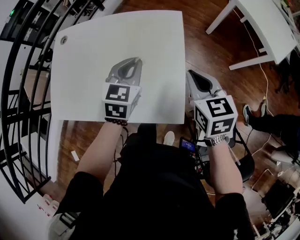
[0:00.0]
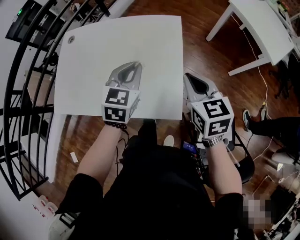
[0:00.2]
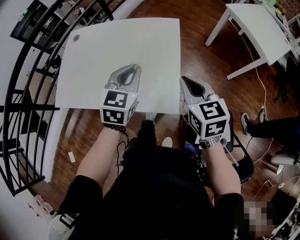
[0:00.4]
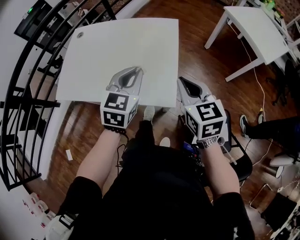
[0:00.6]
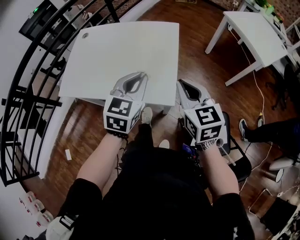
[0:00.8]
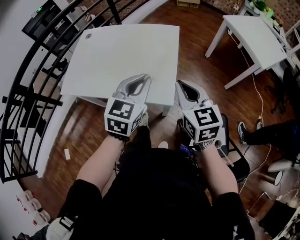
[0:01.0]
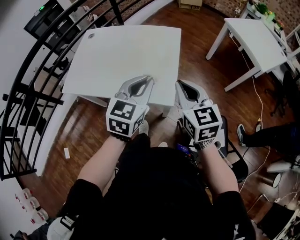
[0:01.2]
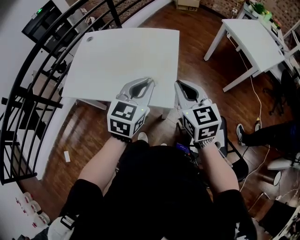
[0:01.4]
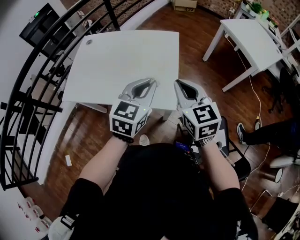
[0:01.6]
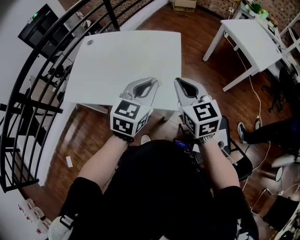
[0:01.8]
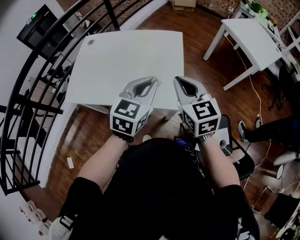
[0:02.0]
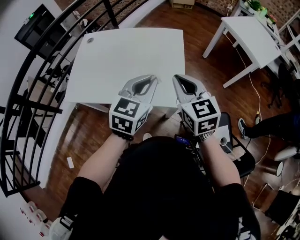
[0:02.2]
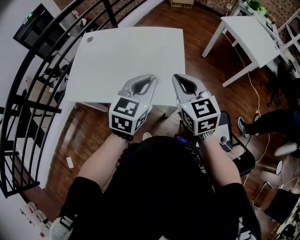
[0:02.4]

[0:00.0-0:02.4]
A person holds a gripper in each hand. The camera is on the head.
0:00.0 to 0:01.2: Both grippers travel together backward and upward, some 25 cm.
0:01.2 to 0:02.4: The two grippers go roughly 10 cm to the left.

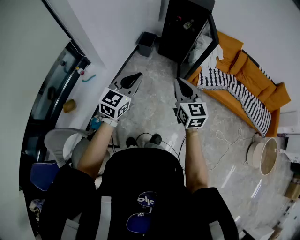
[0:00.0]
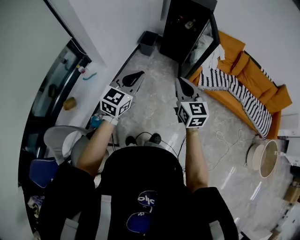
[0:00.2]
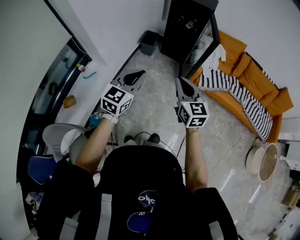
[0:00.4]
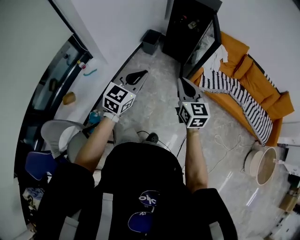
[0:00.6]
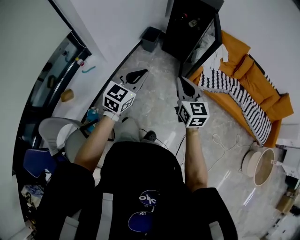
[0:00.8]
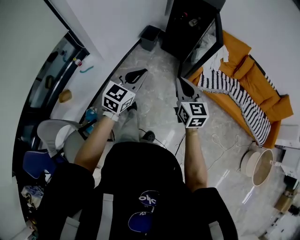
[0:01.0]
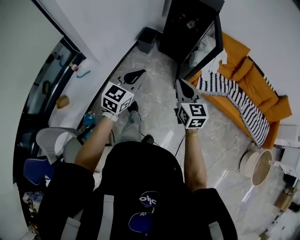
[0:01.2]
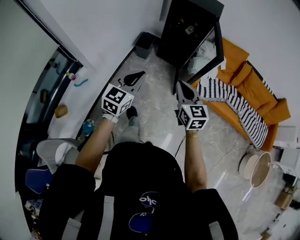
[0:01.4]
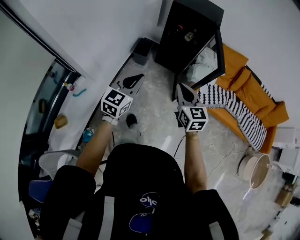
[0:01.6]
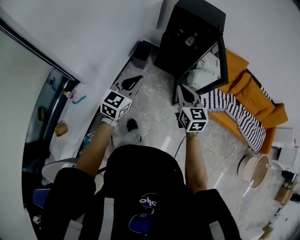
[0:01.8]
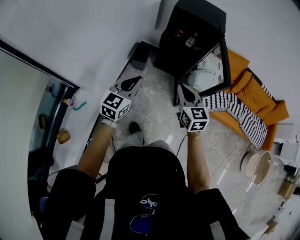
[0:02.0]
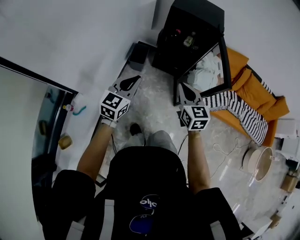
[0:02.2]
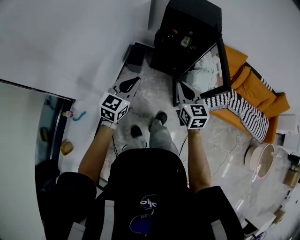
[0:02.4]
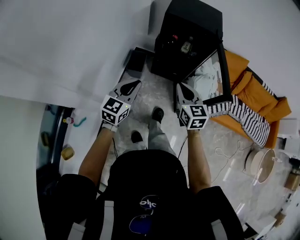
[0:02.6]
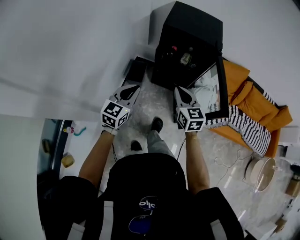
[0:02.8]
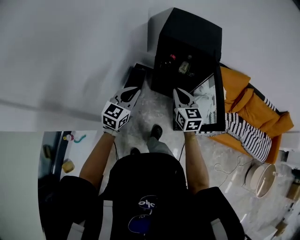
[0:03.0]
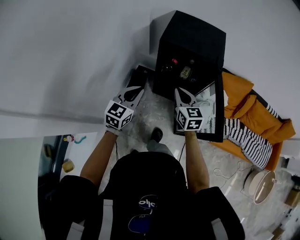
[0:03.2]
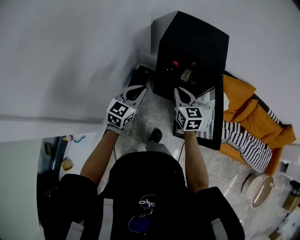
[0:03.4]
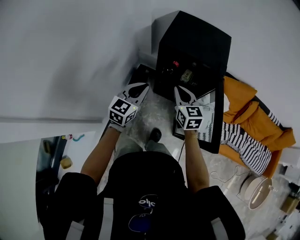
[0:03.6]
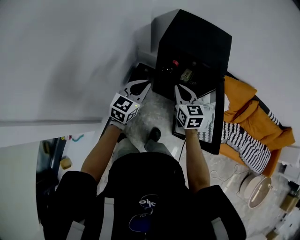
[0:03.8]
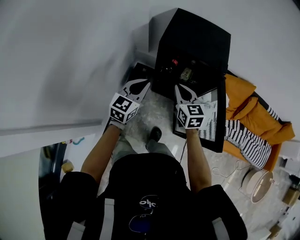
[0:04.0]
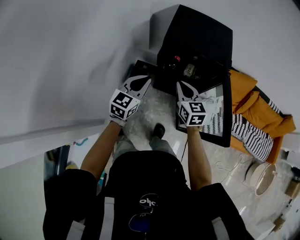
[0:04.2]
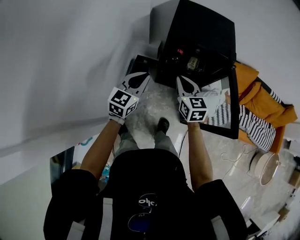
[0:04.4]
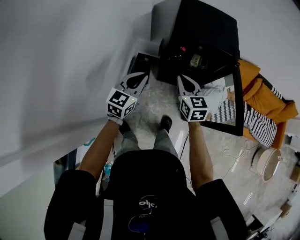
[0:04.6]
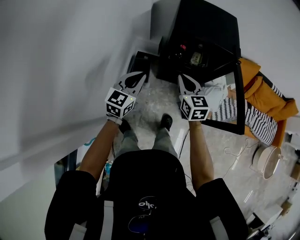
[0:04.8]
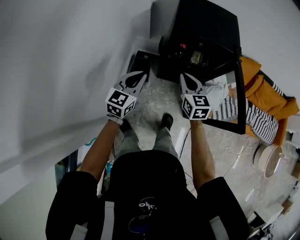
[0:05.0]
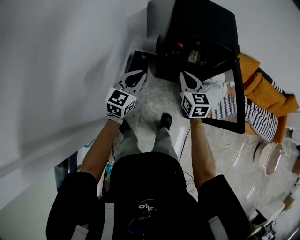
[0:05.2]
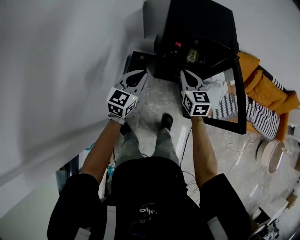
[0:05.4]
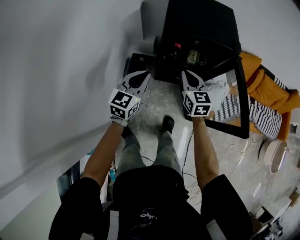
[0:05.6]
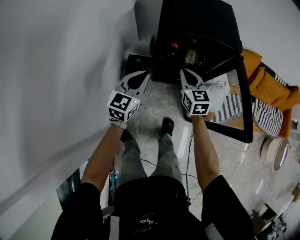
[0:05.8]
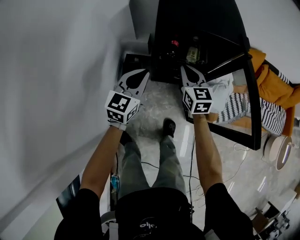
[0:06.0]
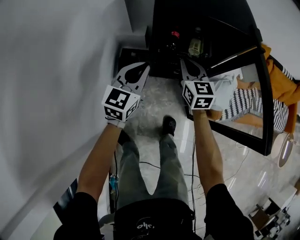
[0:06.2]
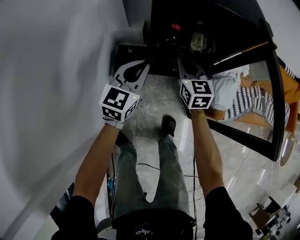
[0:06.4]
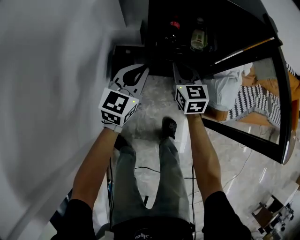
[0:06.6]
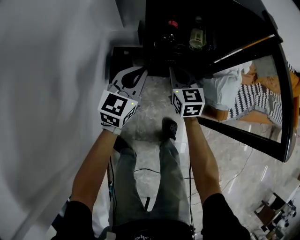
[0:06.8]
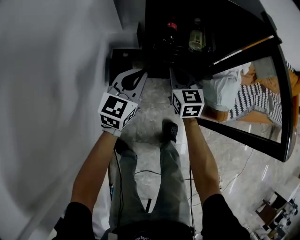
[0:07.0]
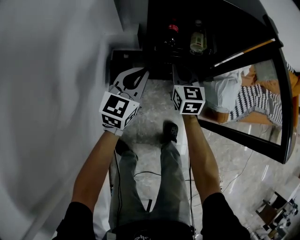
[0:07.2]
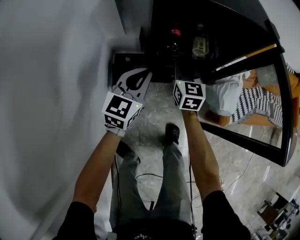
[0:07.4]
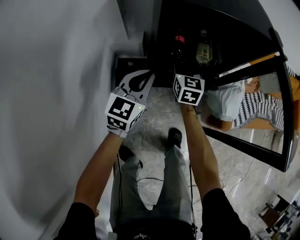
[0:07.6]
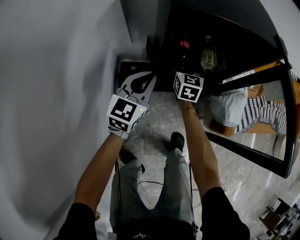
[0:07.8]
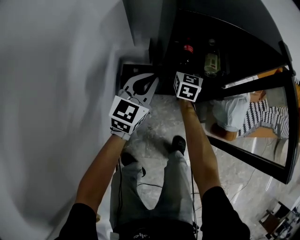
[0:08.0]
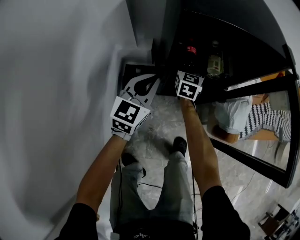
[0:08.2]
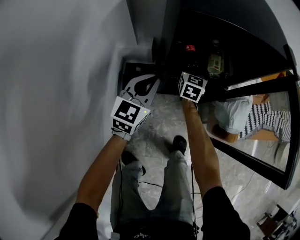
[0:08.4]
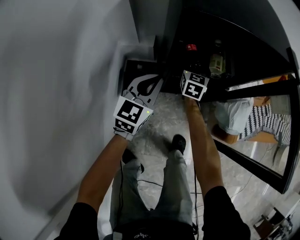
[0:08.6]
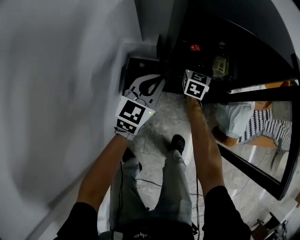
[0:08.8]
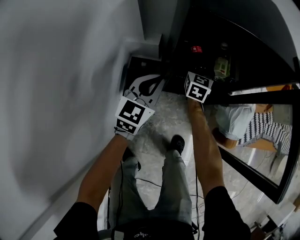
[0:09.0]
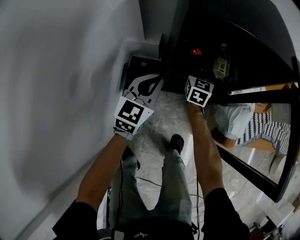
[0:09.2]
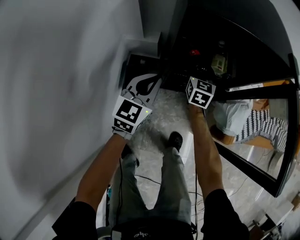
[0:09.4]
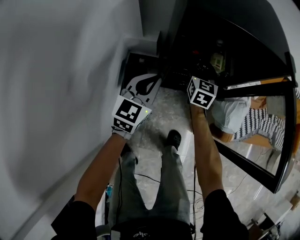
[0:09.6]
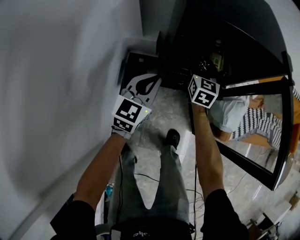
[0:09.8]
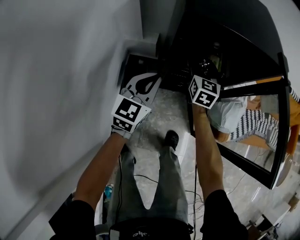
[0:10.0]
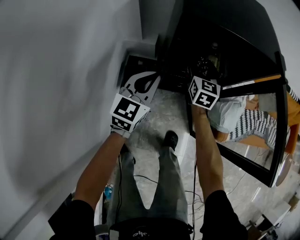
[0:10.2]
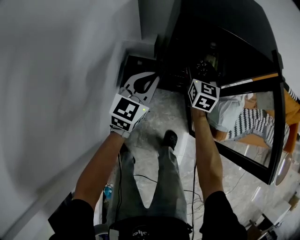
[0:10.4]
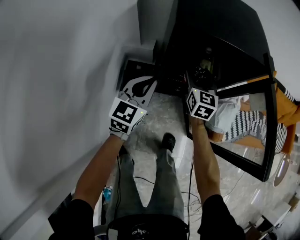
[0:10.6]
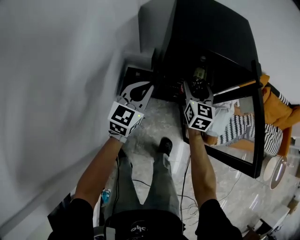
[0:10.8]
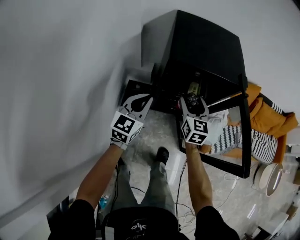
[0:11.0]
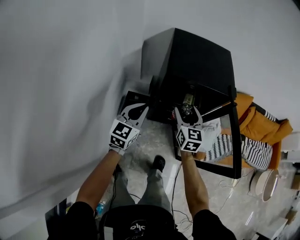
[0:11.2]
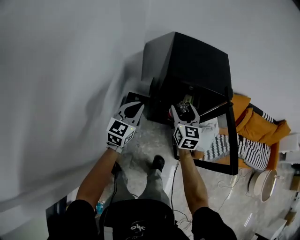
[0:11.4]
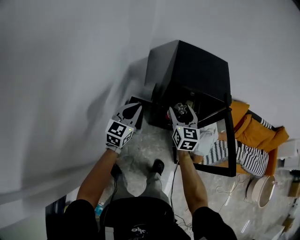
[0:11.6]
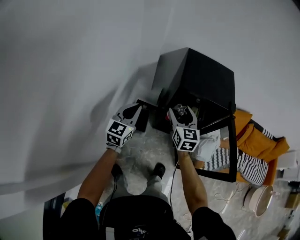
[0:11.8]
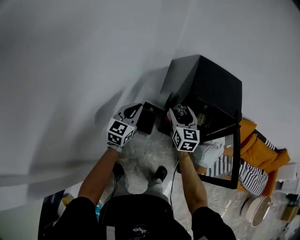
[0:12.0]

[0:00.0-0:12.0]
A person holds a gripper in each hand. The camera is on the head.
0:00.0 to 0:01.6: Both grippers move forward, approximately 25 cm.
0:01.6 to 0:03.0: The two grippers go about 35 cm forward.
0:03.0 to 0:04.4: The left gripper heads forward, covering about 15 cm, while the right gripper shifts some 15 cm forward and to the left.
0:04.4 to 0:06.0: Both grippers travel together downward and forward, roughly 15 cm.
0:06.0 to 0:07.6: The two grippers go about 20 cm downward and forward. The right gripper opens up.
0:07.6 to 0:09.0: The right gripper shifts approximately 10 cm forward and downward, and opens up.
0:09.0 to 0:10.4: The left gripper travels upward by approximately 5 cm. Meanwhile the right gripper goes approximately 15 cm upward and backward.
0:10.4 to 0:12.0: Both grippers travel together upward, to the left and backward, some 35 cm. The right gripper rotates some 20 degrees.

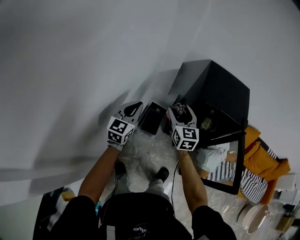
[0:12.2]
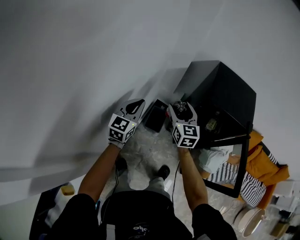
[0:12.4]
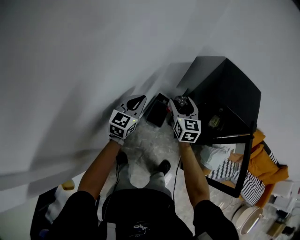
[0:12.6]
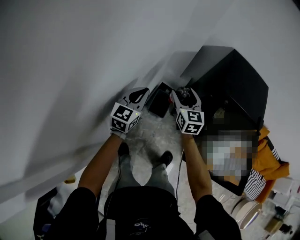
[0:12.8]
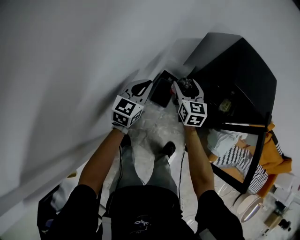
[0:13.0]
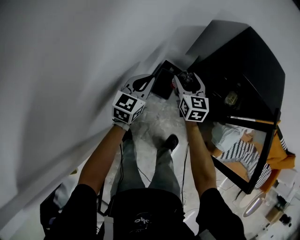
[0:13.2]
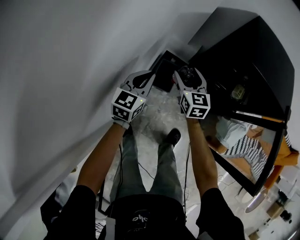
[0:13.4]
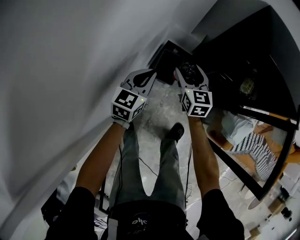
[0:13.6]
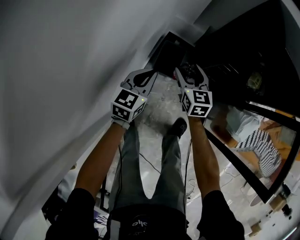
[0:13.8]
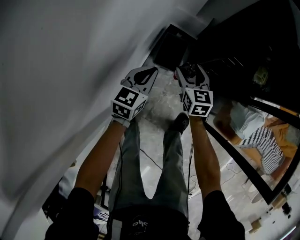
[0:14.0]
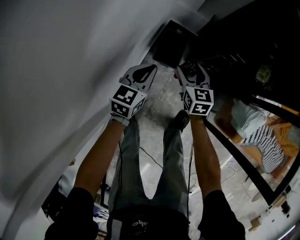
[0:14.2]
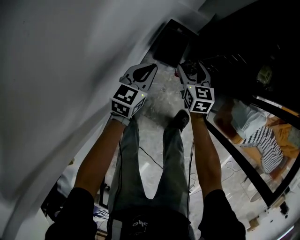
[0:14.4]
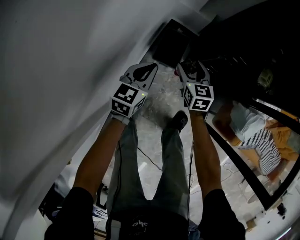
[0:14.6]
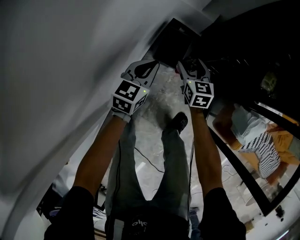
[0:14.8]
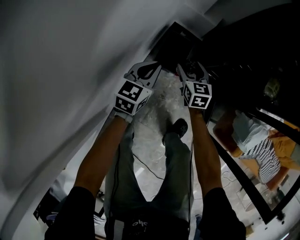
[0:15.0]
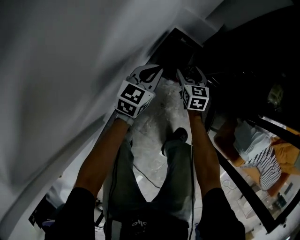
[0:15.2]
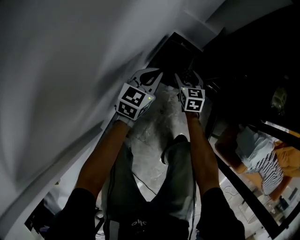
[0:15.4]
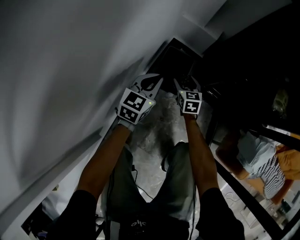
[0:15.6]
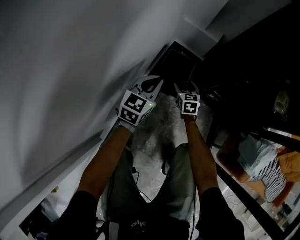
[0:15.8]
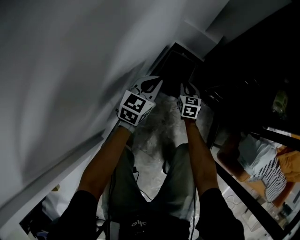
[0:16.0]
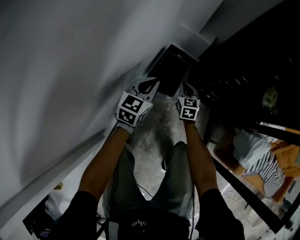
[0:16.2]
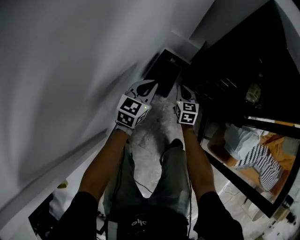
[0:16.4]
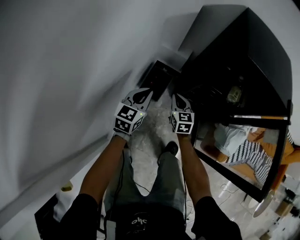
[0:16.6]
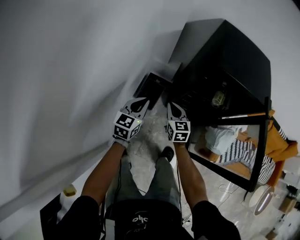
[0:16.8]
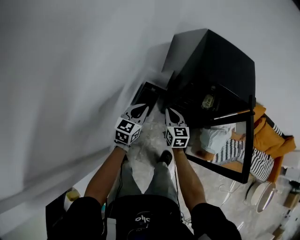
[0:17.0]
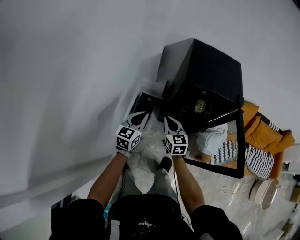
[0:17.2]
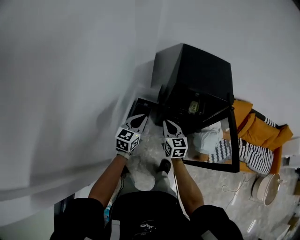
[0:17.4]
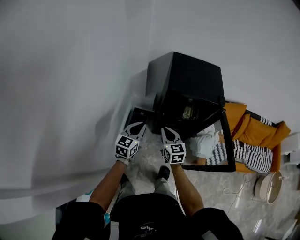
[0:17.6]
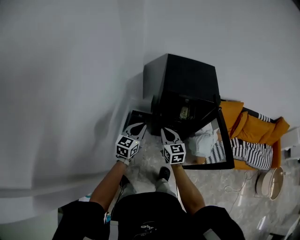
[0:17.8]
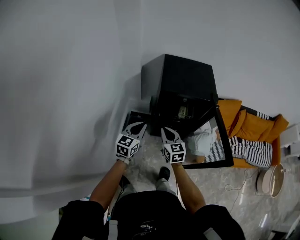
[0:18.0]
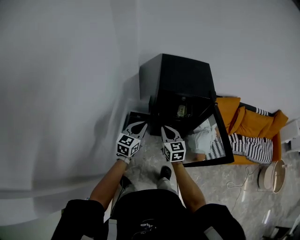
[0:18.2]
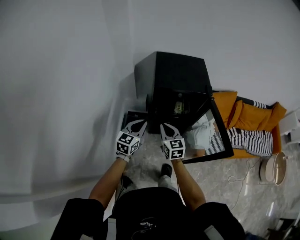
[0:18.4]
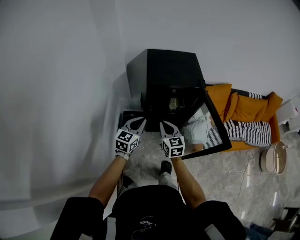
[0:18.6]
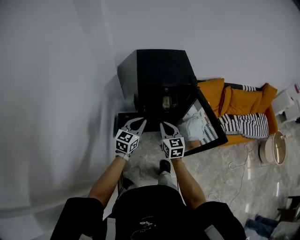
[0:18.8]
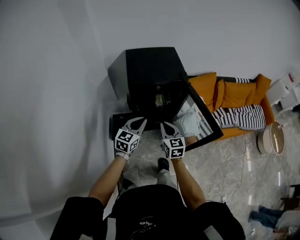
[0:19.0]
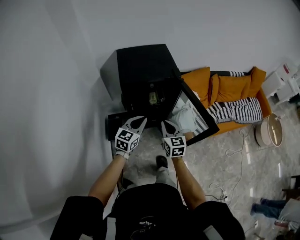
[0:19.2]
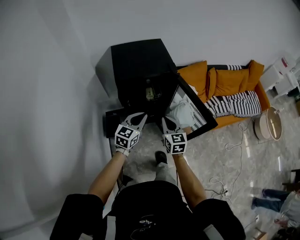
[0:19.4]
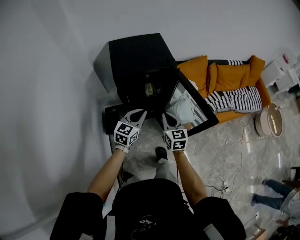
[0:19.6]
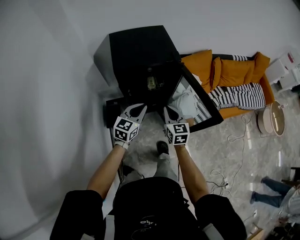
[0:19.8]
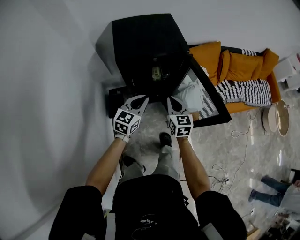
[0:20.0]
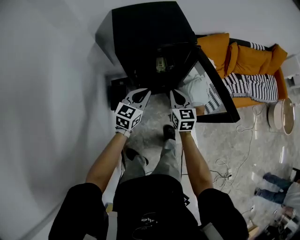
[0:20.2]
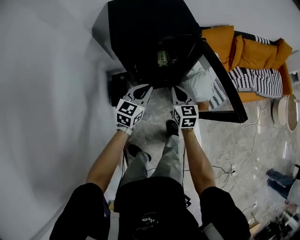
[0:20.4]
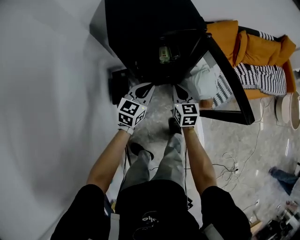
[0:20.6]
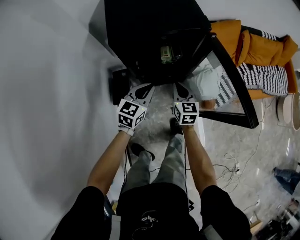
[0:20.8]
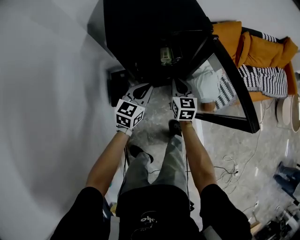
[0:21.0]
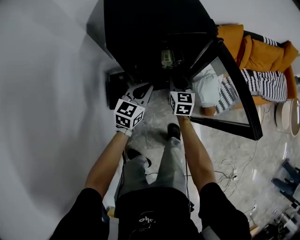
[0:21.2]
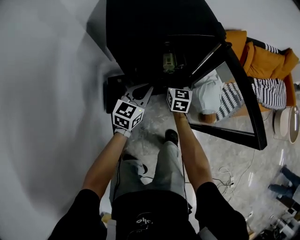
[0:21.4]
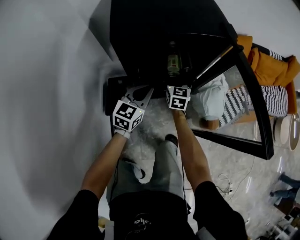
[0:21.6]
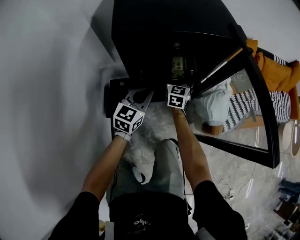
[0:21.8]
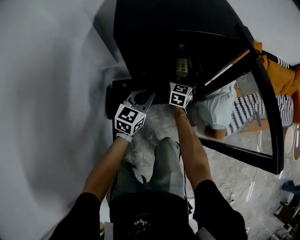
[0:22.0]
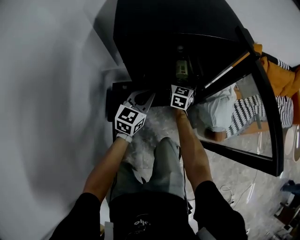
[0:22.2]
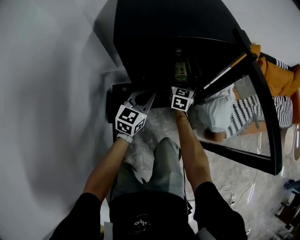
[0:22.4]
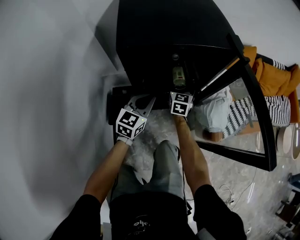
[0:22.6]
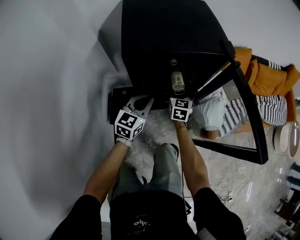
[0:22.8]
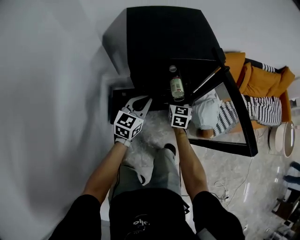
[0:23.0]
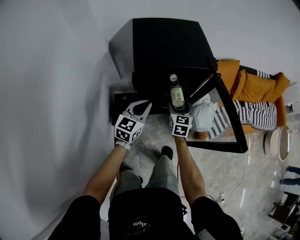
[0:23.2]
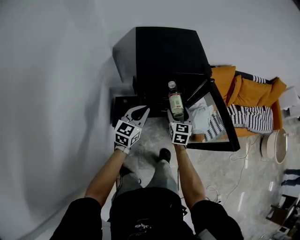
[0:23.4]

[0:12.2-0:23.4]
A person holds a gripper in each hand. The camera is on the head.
0:12.2 to 0:13.8: Both grippers move downward, roughly 35 cm.
0:13.8 to 0:15.4: Both grippers travel together downward, some 25 cm.
0:15.4 to 0:17.0: The two grippers go roughly 40 cm upward. The right gripper closes.
0:17.0 to 0:18.6: The right gripper moves upward, to the right and backward, approximately 20 cm; the left gripper is displaced to the right and upward by some 20 cm, and rotates some 20 degrees.
0:18.6 to 0:20.2: The grippers both shift to the right, downward and forward by about 15 cm.
0:20.2 to 0:21.8: The grippers both shift downward and forward by approximately 25 cm. The right gripper opens up.
0:21.8 to 0:23.4: Both grippers move upward and backward, about 25 cm.
